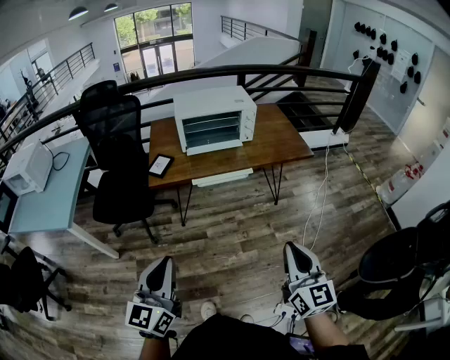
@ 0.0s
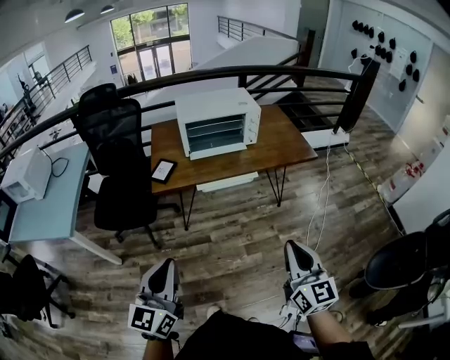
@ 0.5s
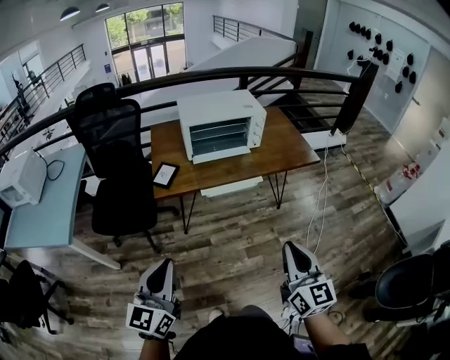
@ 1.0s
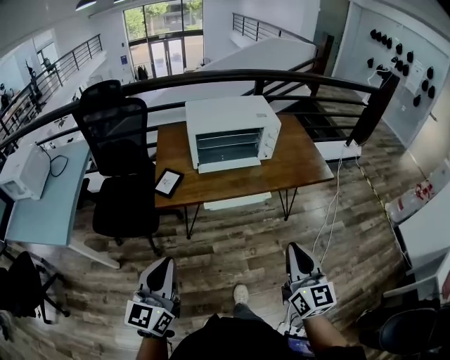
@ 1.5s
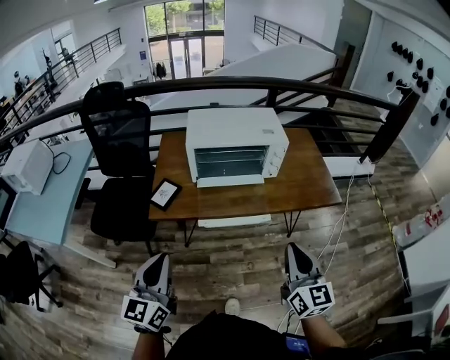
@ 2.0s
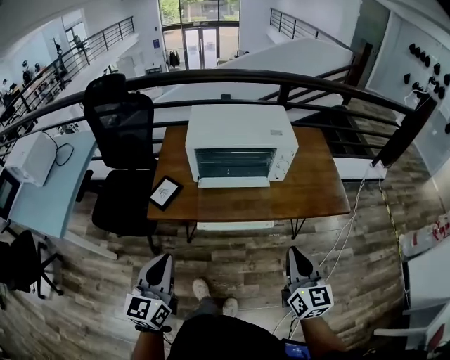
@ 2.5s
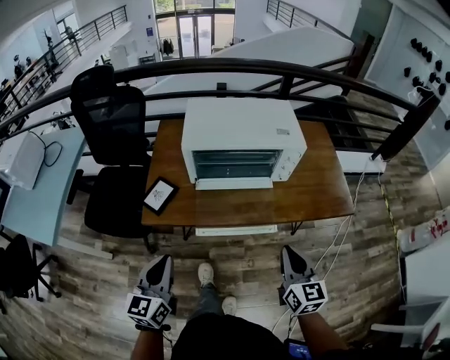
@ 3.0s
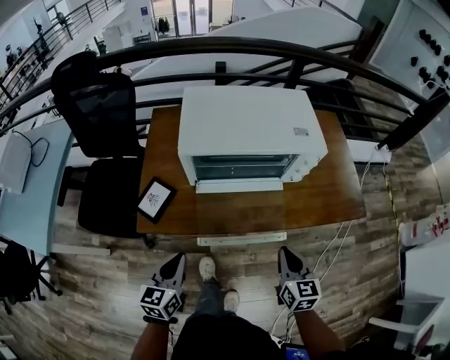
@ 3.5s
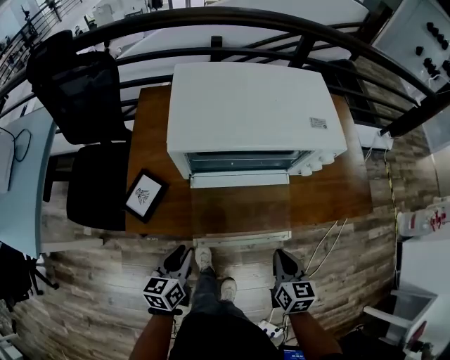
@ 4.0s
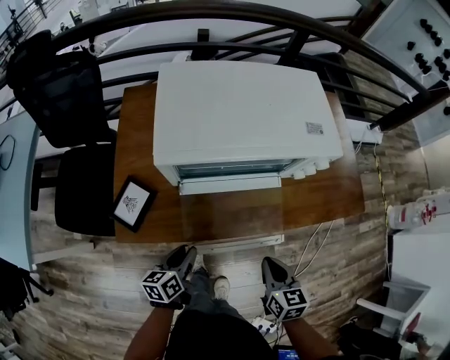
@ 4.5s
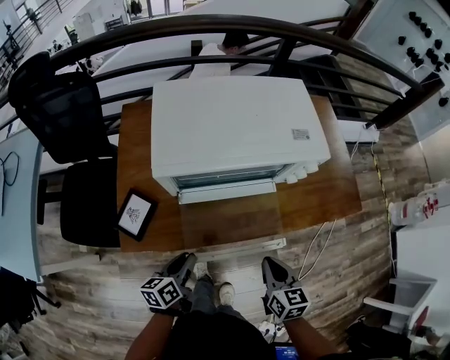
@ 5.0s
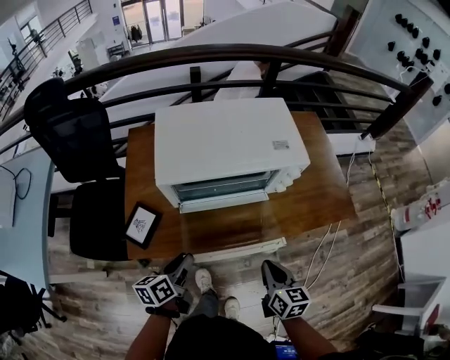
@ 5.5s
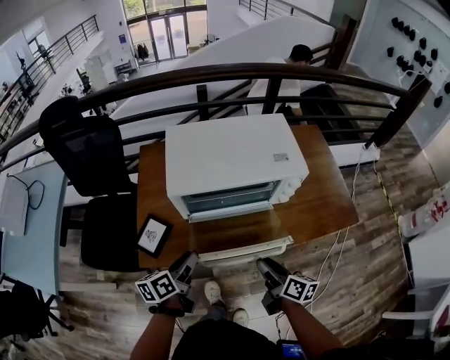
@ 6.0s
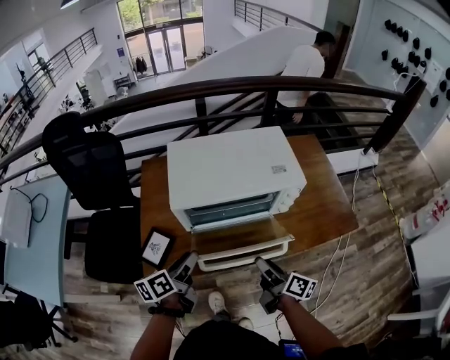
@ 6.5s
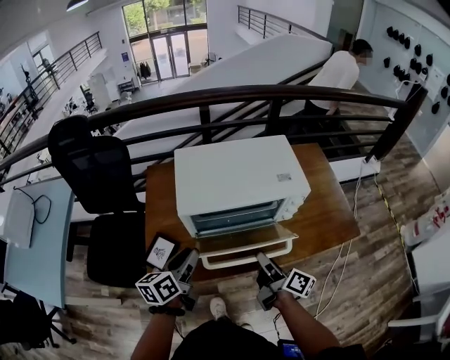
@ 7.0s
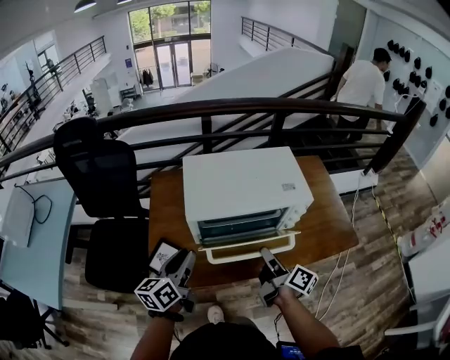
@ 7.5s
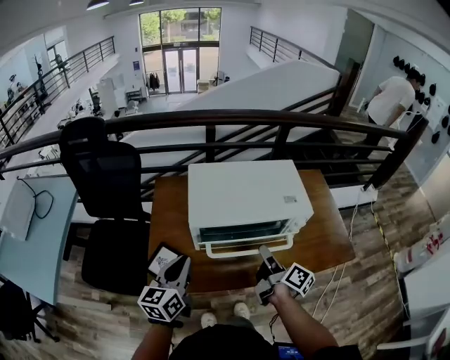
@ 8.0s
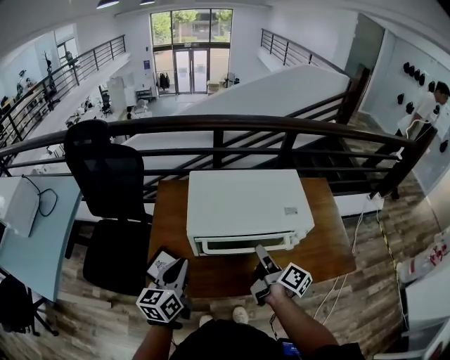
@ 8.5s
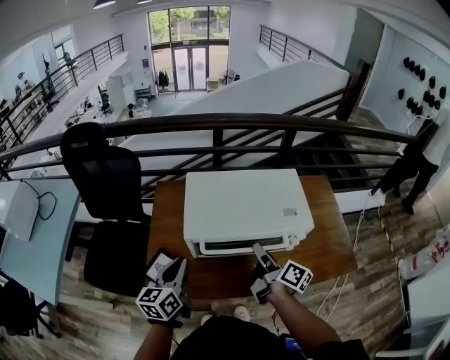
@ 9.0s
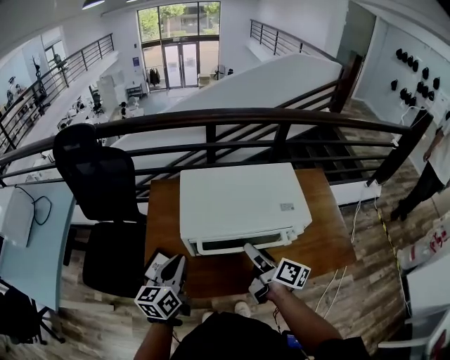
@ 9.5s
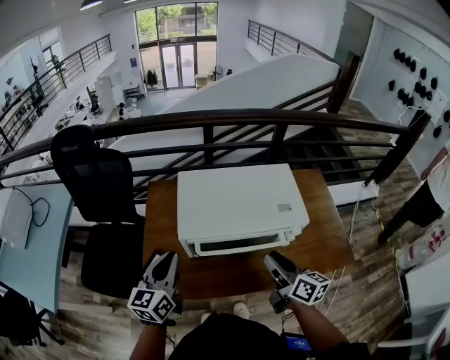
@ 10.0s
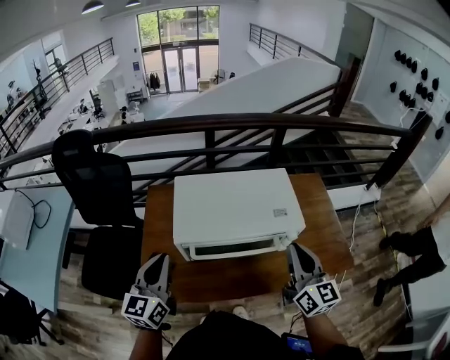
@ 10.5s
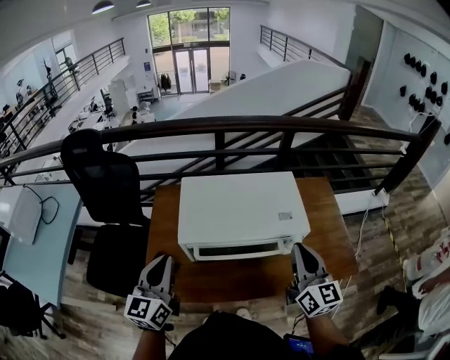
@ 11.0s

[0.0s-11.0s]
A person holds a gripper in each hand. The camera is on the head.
0.0s to 2.0s: Both grippers move forward, roughly 25 cm.
2.0s to 3.5s: Both grippers move downward and forward, roughly 25 cm. The left gripper changes its angle by some 30 degrees. The right gripper rotates about 30 degrees.
3.5s to 5.5s: The left gripper goes some 10 cm forward, travels downward and back again, some 15 cm each way, changes its angle by approximately 30 degrees, and opens its fingers.
5.5s to 7.5s: The right gripper shifts some 15 cm forward, upward and to the left, twists about 40 degrees clockwise, seen from behind, and opens up. Meanwhile the left gripper moves upward, forward and to the left, roughly 15 cm, and swivels some 20 degrees.
7.5s to 9.0s: The left gripper closes; the right gripper is displaced forward by some 10 cm.
9.0s to 11.0s: The right gripper moves upward and to the right, approximately 15 cm, rotates around the line of its fingers by some 50 degrees, counterclockwise from behind, and closes, while the left gripper goes some 10 cm upward.

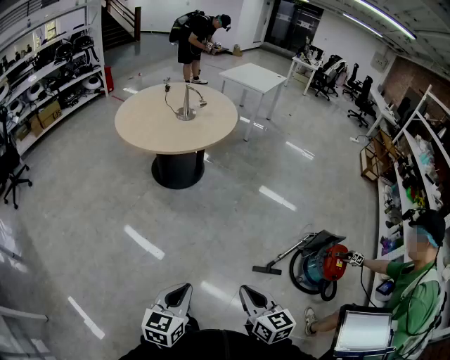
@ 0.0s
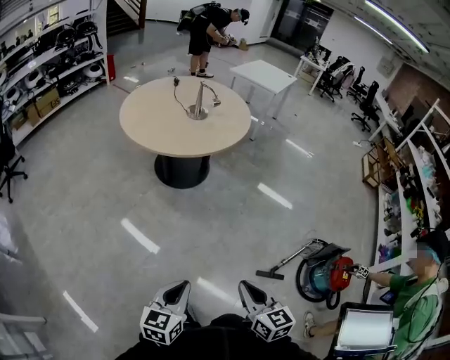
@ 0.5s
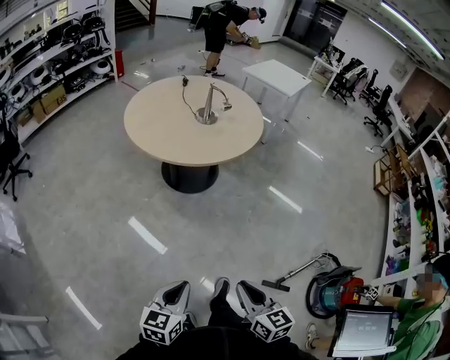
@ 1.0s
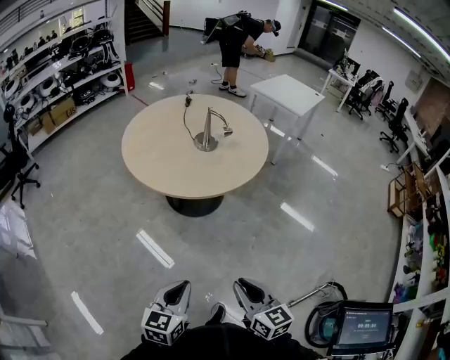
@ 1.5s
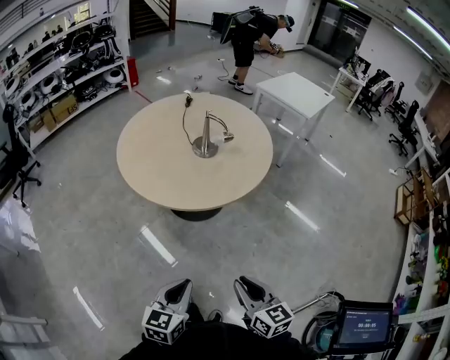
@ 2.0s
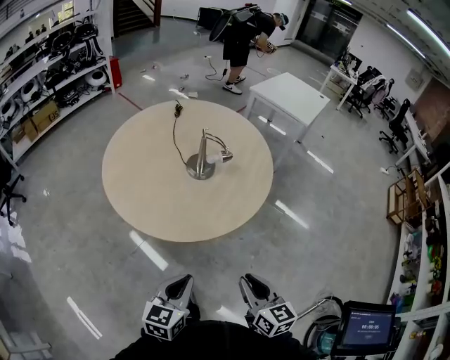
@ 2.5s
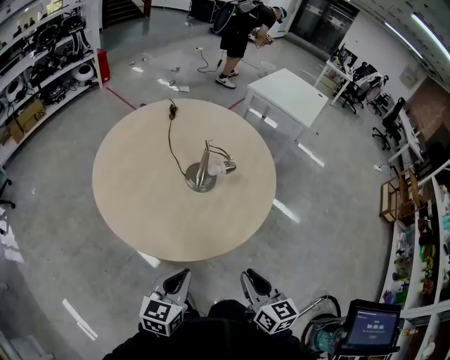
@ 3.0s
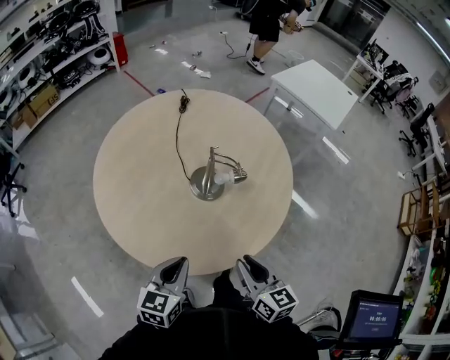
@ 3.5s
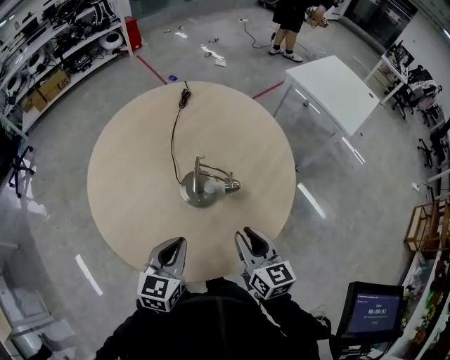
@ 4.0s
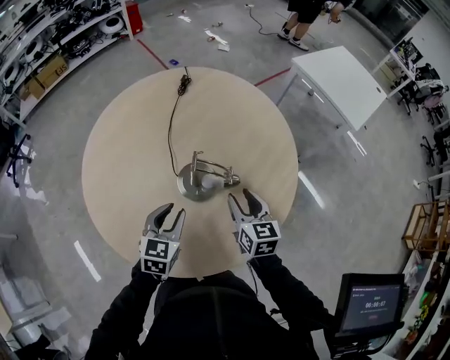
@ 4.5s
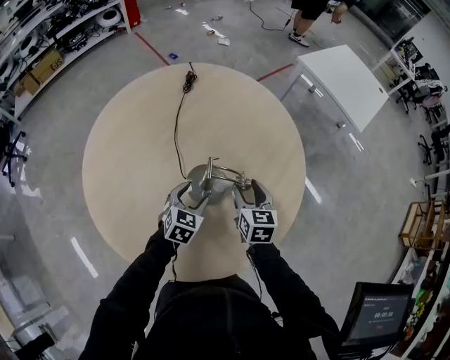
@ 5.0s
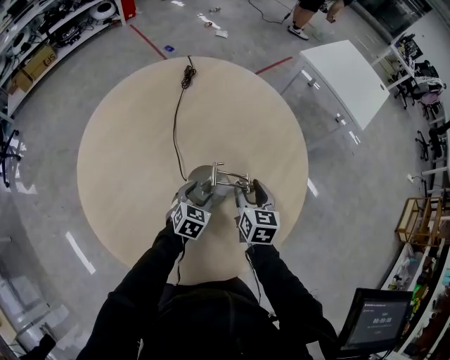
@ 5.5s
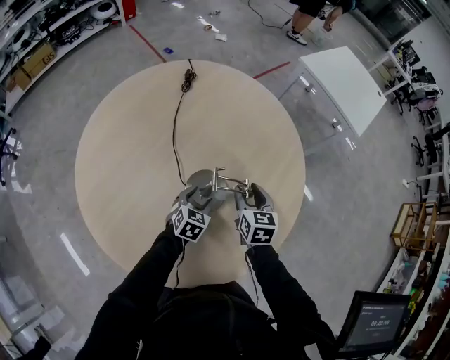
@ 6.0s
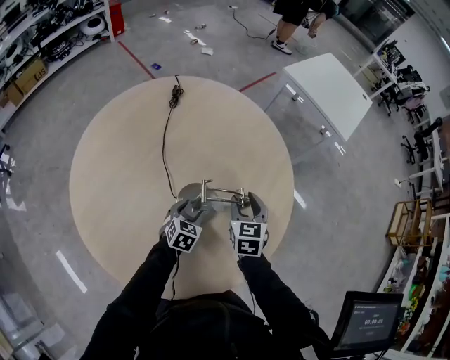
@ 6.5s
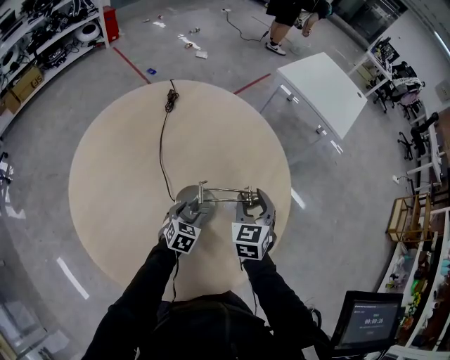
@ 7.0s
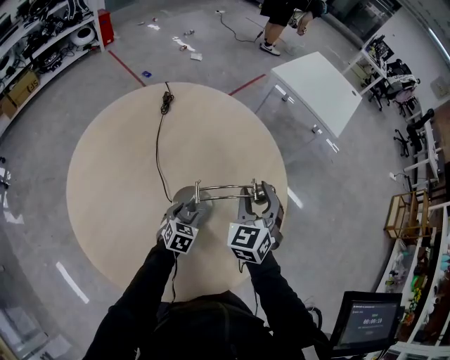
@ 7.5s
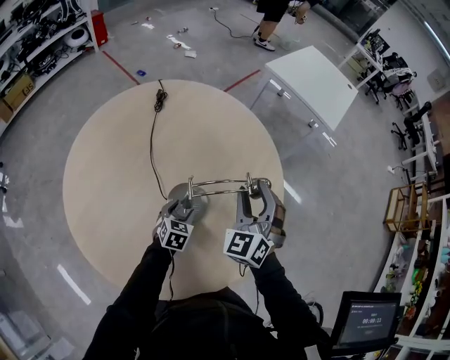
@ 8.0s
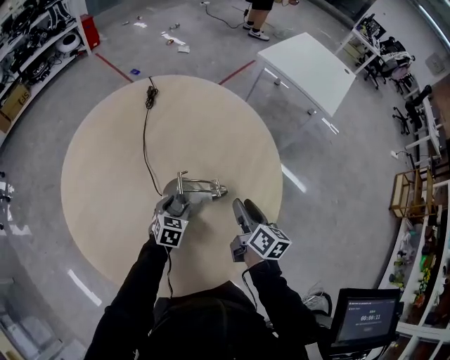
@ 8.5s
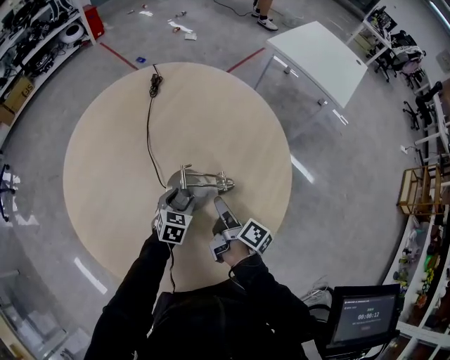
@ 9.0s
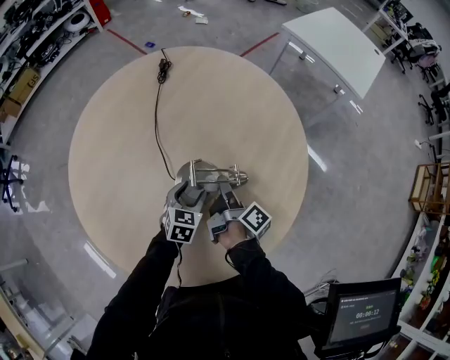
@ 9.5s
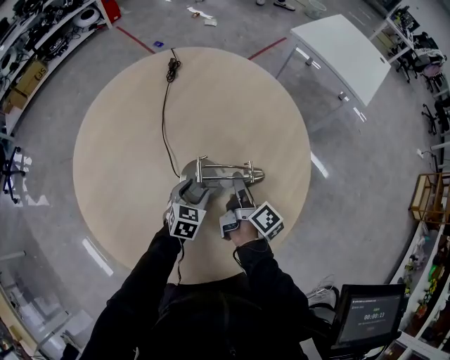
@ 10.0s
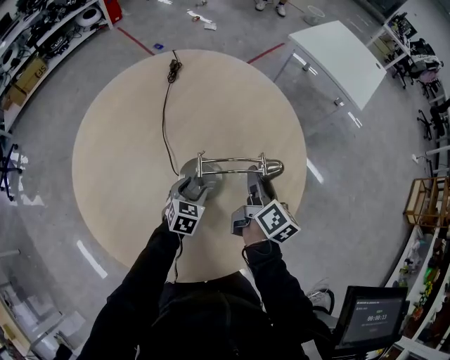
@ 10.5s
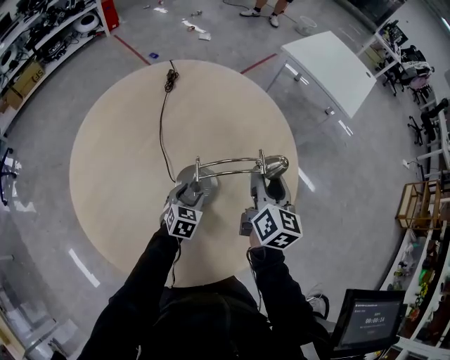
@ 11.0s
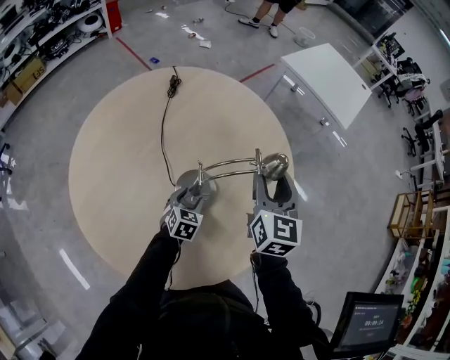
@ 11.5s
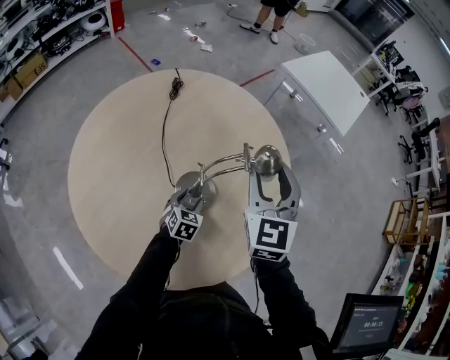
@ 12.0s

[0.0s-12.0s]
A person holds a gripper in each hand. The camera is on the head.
0.0s to 2.0s: The pair of grippers is taken forward, about 50 cm.
2.0s to 4.0s: The pair of grippers is taken forward, approximately 50 cm.
4.0s to 6.0s: The right gripper goes approximately 20 cm forward and downward, rotates some 20 degrees, and opens up, while the left gripper heads downward and forward, covering about 30 cm, rotates approximately 20 degrees, and opens.
6.0s to 8.0s: The right gripper is displaced upward by approximately 15 cm, and rotates around the line of its fingers by approximately 50 degrees, counterclockwise from behind.
8.0s to 10.0s: The right gripper is displaced downward by approximately 15 cm, and rolls clockwise, seen from behind, by approximately 120 degrees.
10.0s to 12.0s: The right gripper heads upward, covering about 25 cm, and rotates around the line of its fingers by roughly 90 degrees, counterclockwise from behind.

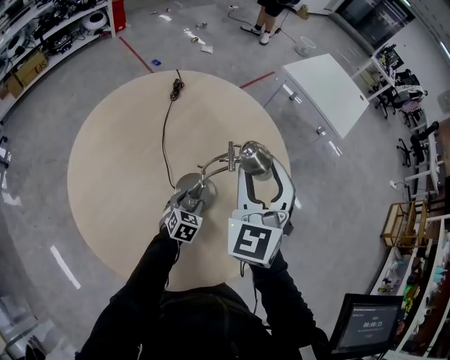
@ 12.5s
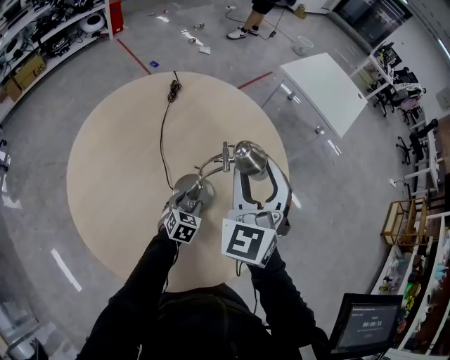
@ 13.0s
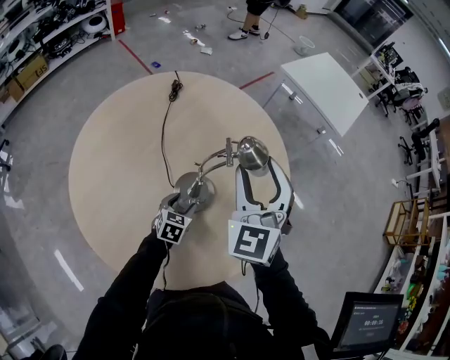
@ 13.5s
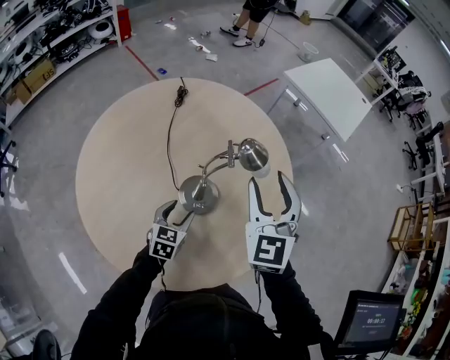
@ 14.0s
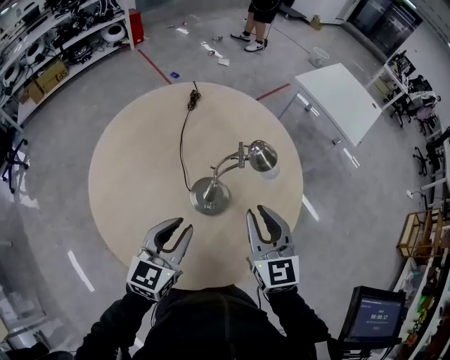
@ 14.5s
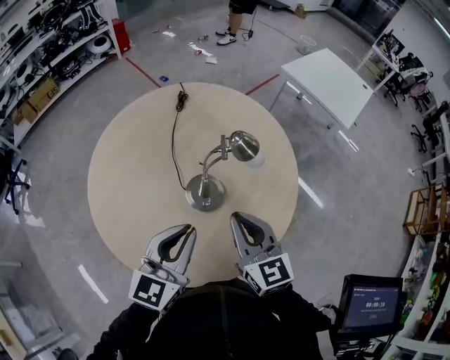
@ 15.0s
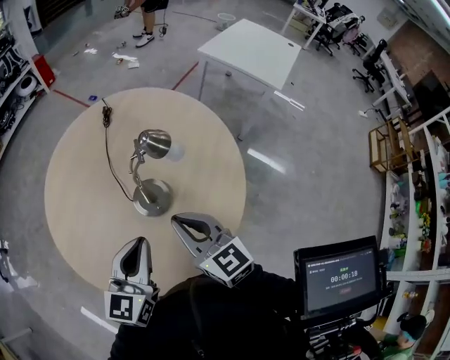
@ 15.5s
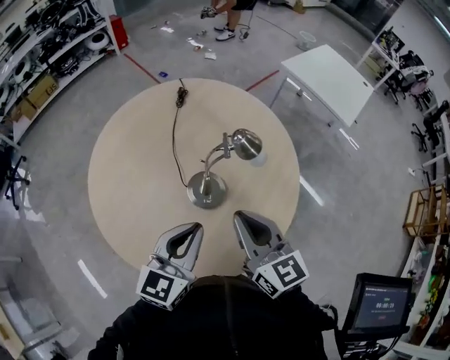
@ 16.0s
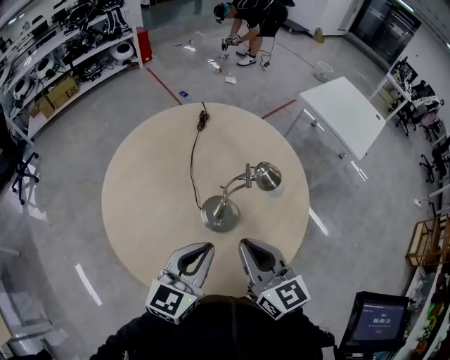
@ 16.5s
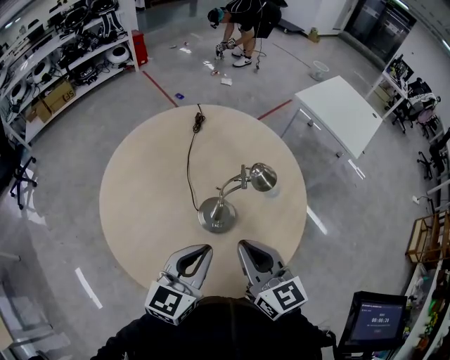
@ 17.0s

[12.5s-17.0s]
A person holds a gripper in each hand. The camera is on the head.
12.5s to 14.5s: The right gripper heads backward and downward, covering some 10 cm, changes its angle by roughly 30 degrees, and closes up; the left gripper shifts approximately 30 cm upward and backward, rotates approximately 30 degrees, and closes.
14.5s to 17.0s: The right gripper shifts by about 5 cm, rotates approximately 20 degrees, and closes up. Meanwhile the left gripper heads upward, covering roughly 5 cm.
